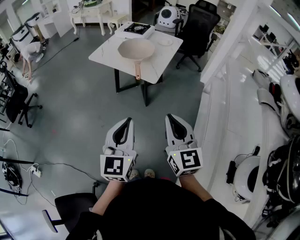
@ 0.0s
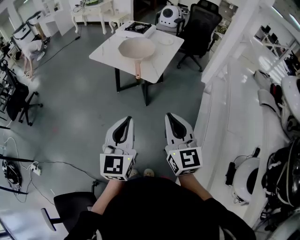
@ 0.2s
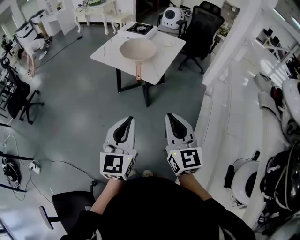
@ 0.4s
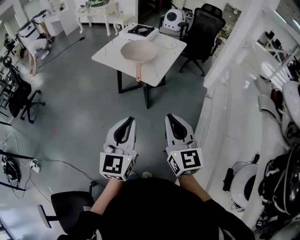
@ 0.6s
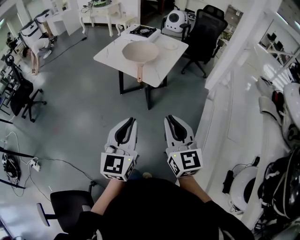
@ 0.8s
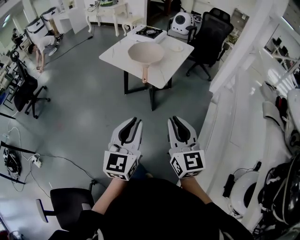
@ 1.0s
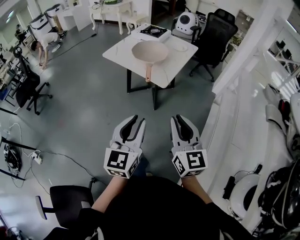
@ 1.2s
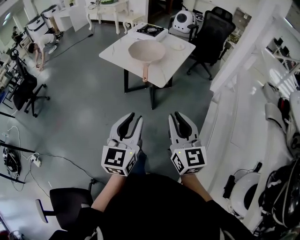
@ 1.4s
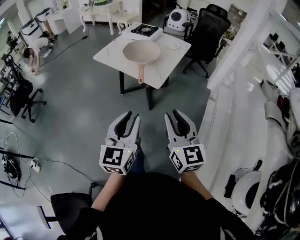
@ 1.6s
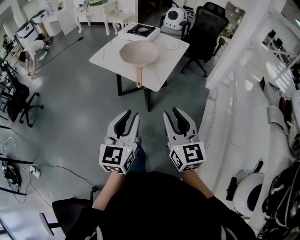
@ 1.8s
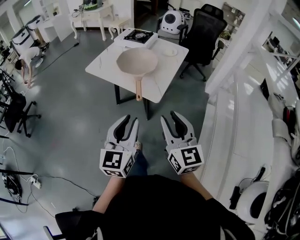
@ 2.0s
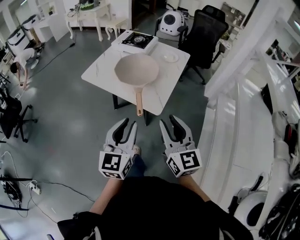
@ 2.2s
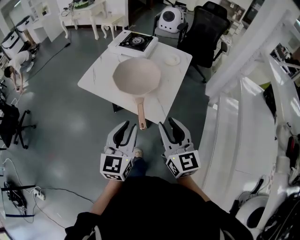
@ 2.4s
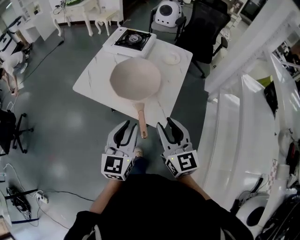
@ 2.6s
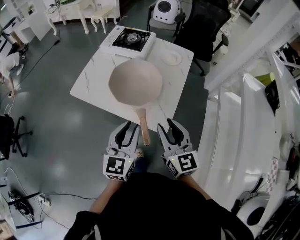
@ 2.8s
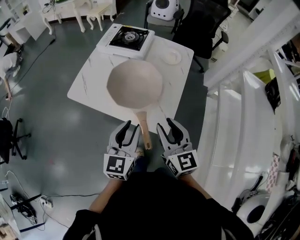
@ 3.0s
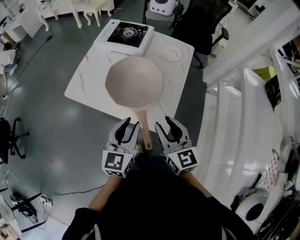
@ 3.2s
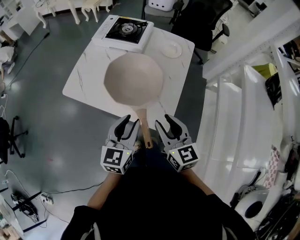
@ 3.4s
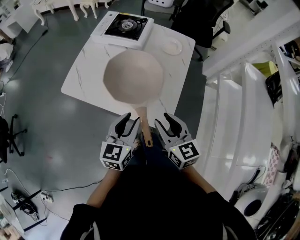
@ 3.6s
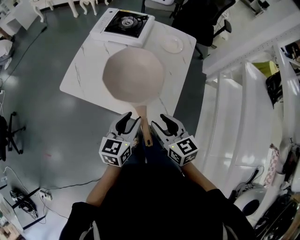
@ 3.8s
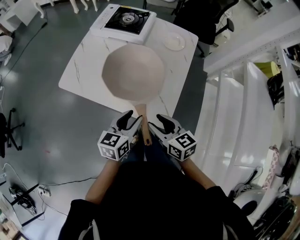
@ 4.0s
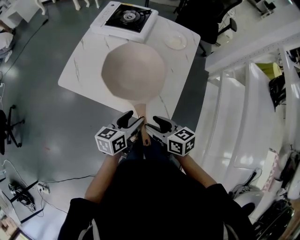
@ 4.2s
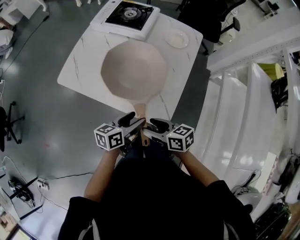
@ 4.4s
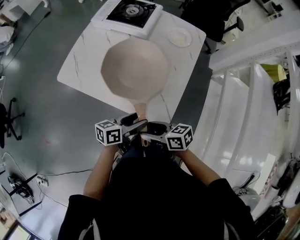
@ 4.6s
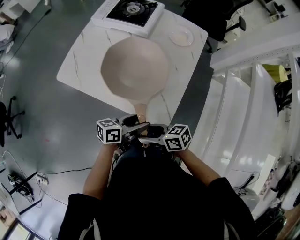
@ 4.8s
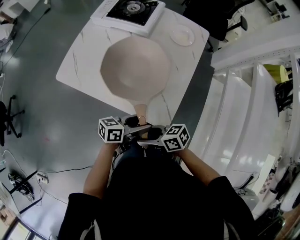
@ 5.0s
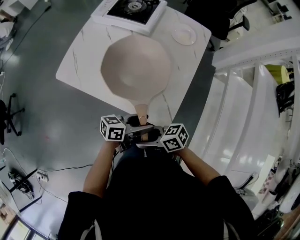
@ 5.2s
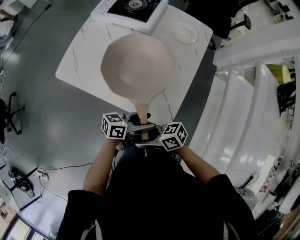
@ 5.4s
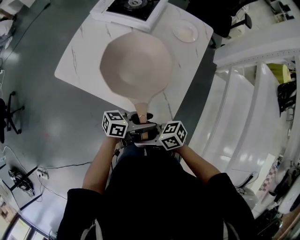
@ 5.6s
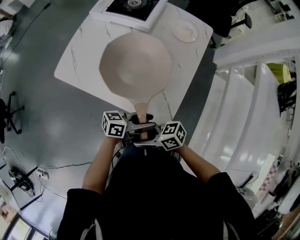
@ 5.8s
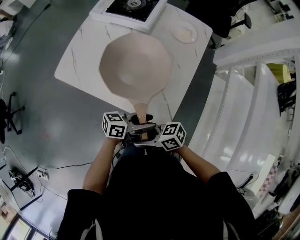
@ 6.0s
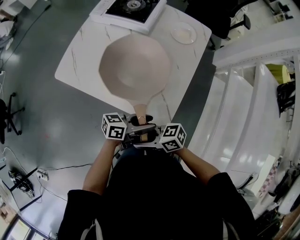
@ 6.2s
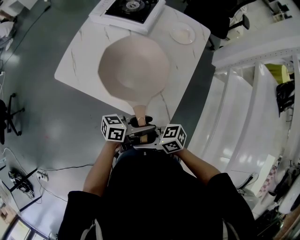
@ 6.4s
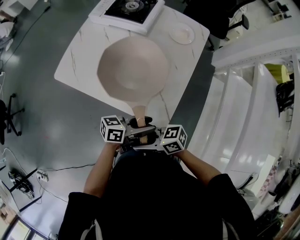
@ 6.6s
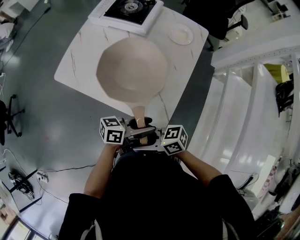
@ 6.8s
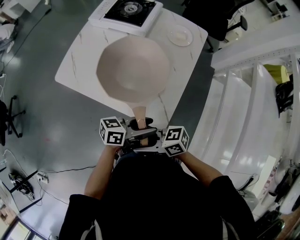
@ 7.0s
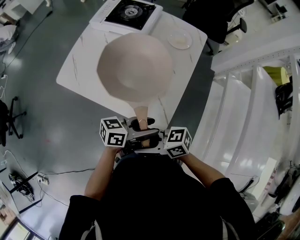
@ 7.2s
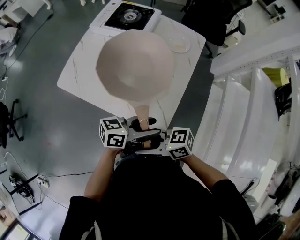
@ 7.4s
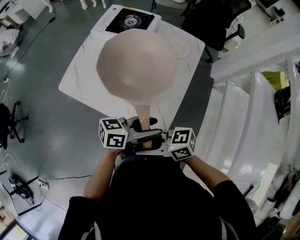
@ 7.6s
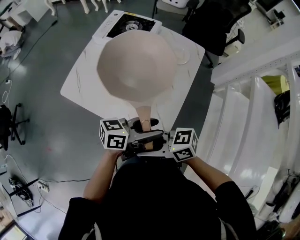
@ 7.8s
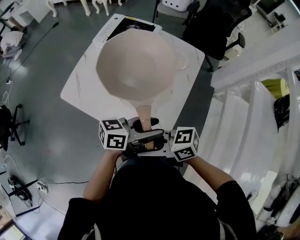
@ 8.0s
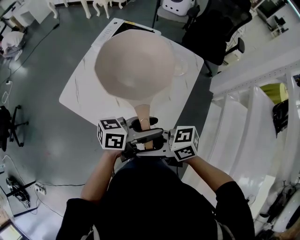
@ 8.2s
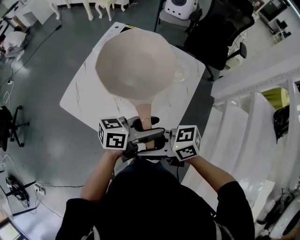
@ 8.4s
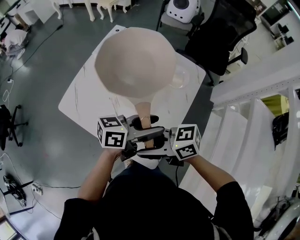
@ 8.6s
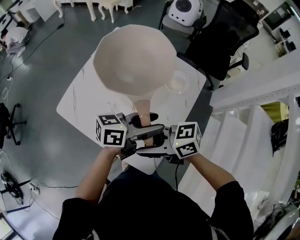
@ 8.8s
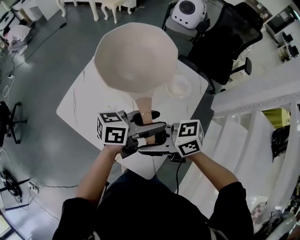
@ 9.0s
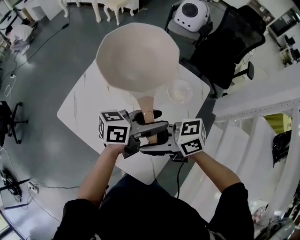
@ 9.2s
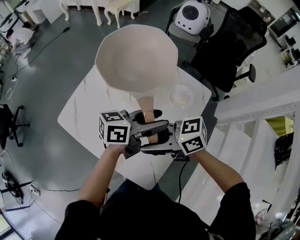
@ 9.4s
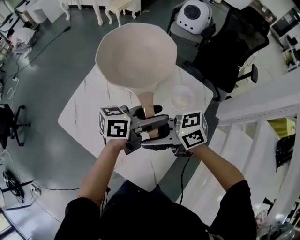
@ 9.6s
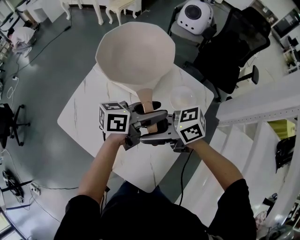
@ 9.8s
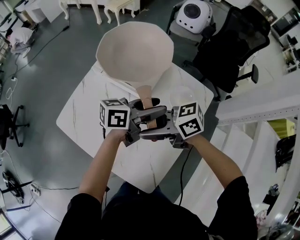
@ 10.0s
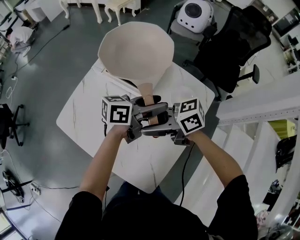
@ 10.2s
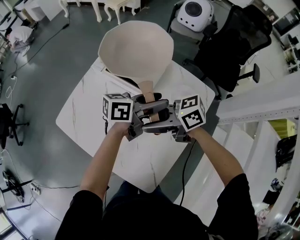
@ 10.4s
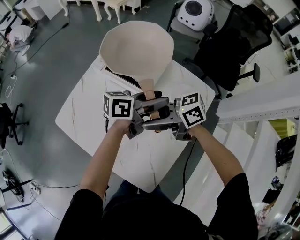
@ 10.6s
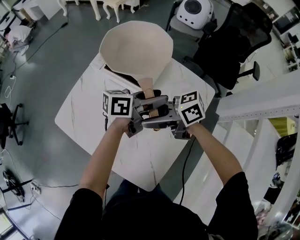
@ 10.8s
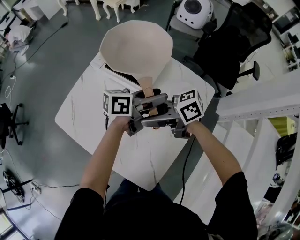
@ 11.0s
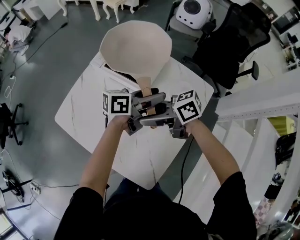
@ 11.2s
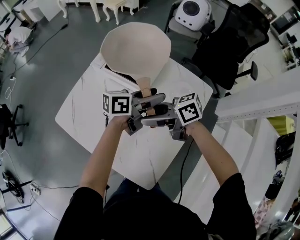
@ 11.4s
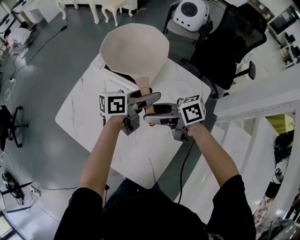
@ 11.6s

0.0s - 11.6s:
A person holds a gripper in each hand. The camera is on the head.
0.0s - 1.4s: The grippers move only a little.
1.4s - 2.8s: Both grippers travel together forward, about 40 cm.
2.8s - 4.4s: The two grippers go some 15 cm downward. The left gripper swivels roughly 50 degrees, and opens its fingers; the right gripper changes its angle by some 50 degrees, and opens its fingers.
4.4s - 5.8s: The right gripper shifts by some 10 cm, and swivels roughly 30 degrees; the left gripper ends up roughly 5 cm from where it was, and rotates approximately 30 degrees.
5.8s - 7.2s: Both grippers move upward, approximately 5 cm.
7.2s - 8.8s: The left gripper changes place by about 25 cm; the right gripper changes place by roughly 25 cm.
8.8s - 10.2s: The left gripper shifts by some 15 cm. Meanwhile the right gripper changes place by about 15 cm.
10.2s - 11.6s: There are only small adjustments of the grippers.

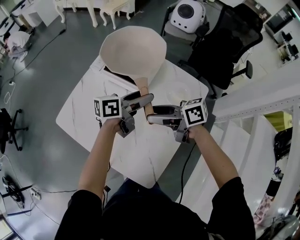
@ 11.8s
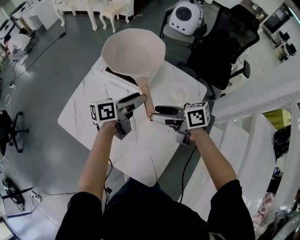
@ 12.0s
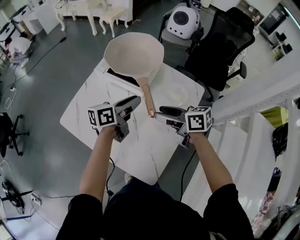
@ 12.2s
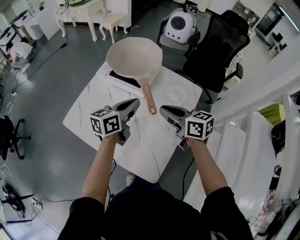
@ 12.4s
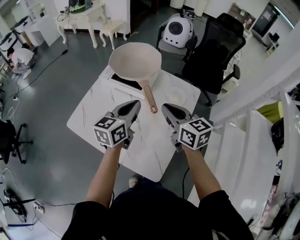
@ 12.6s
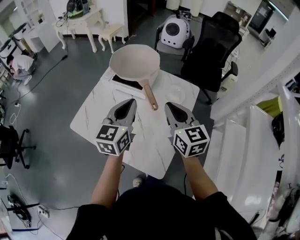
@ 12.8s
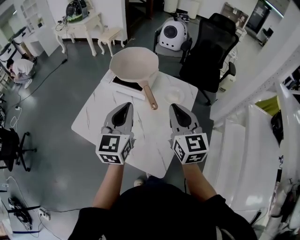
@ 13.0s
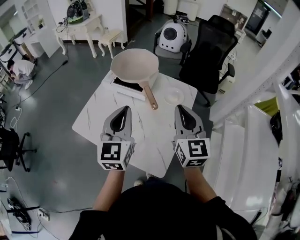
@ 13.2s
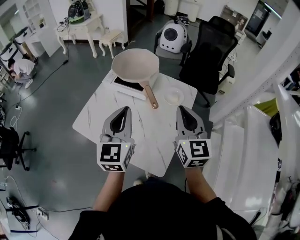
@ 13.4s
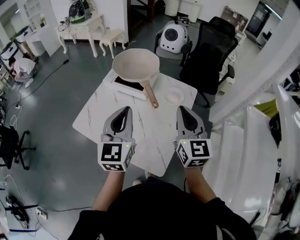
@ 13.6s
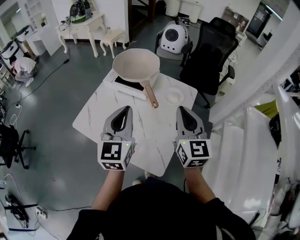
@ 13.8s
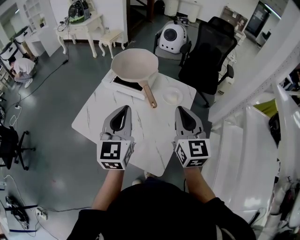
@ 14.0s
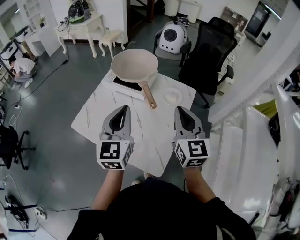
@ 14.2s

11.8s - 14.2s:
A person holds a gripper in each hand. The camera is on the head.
11.8s - 13.0s: The left gripper shifts by about 25 cm, rotates around the line of its fingers by approximately 50 degrees, clockwise from behind, and closes up. Meanwhile the right gripper shifts roughly 15 cm upward, changes its angle by roughly 80 degrees, and closes.
13.0s - 14.2s: The grippers move only a little.

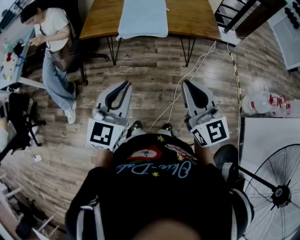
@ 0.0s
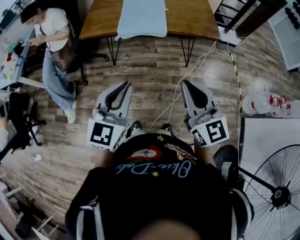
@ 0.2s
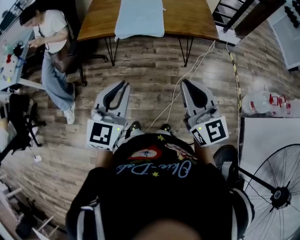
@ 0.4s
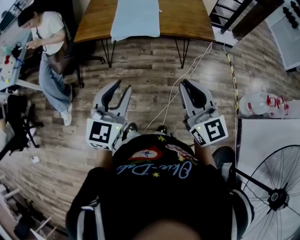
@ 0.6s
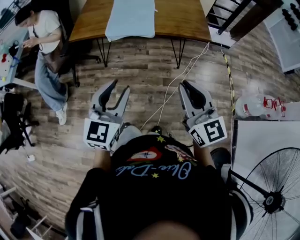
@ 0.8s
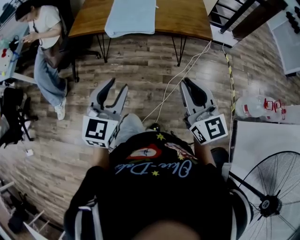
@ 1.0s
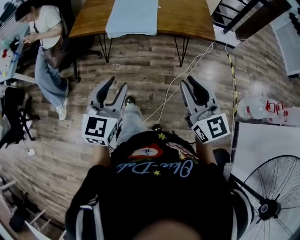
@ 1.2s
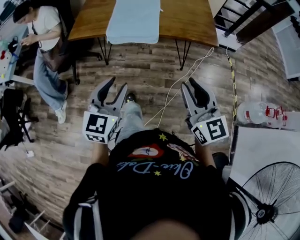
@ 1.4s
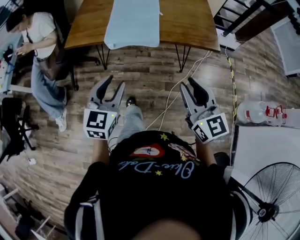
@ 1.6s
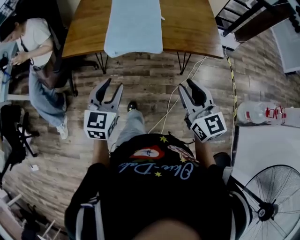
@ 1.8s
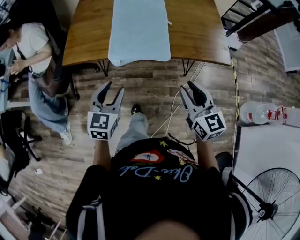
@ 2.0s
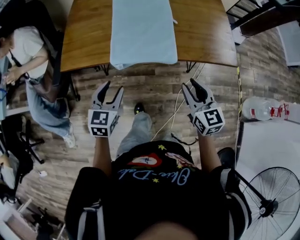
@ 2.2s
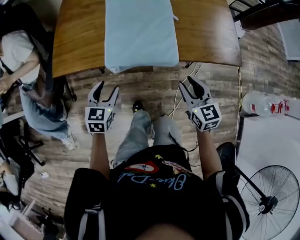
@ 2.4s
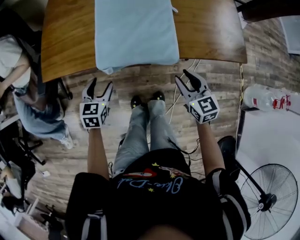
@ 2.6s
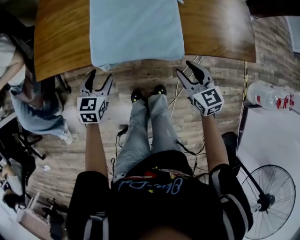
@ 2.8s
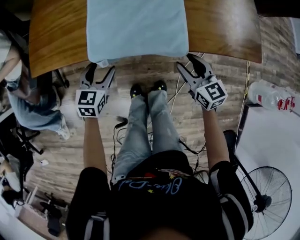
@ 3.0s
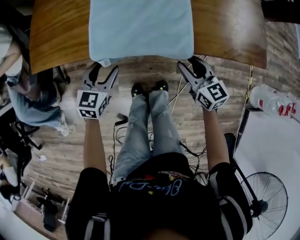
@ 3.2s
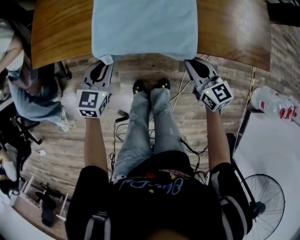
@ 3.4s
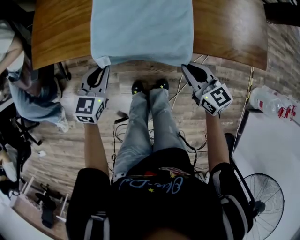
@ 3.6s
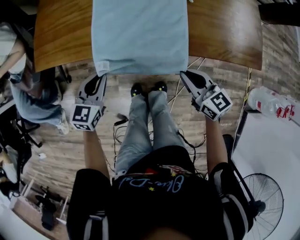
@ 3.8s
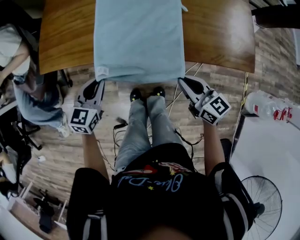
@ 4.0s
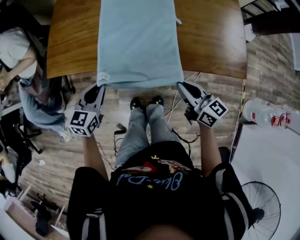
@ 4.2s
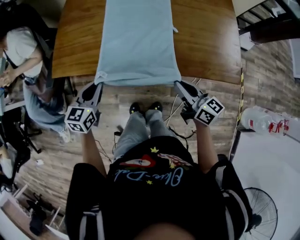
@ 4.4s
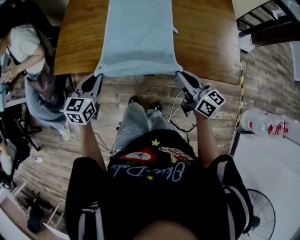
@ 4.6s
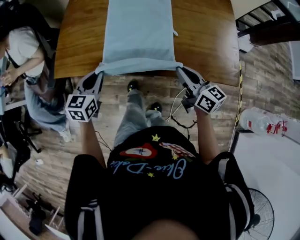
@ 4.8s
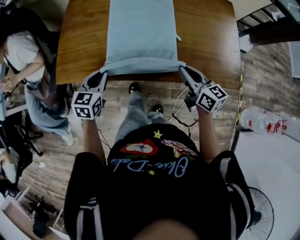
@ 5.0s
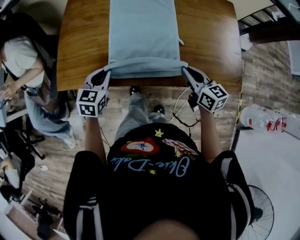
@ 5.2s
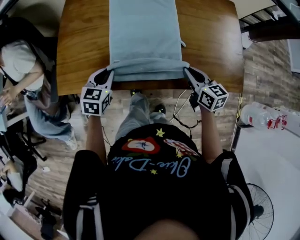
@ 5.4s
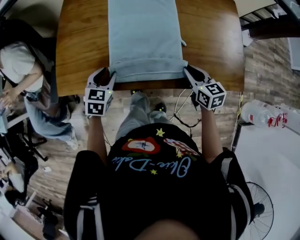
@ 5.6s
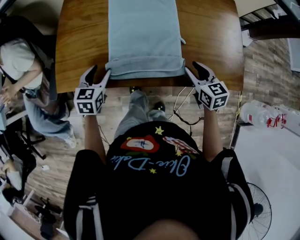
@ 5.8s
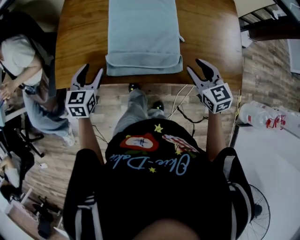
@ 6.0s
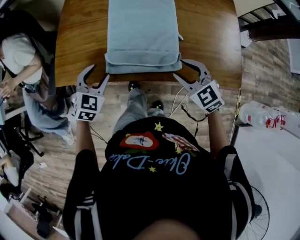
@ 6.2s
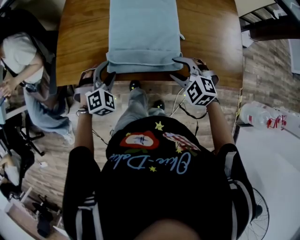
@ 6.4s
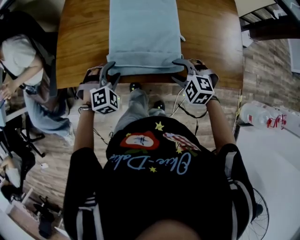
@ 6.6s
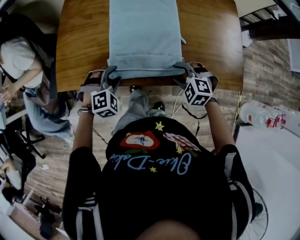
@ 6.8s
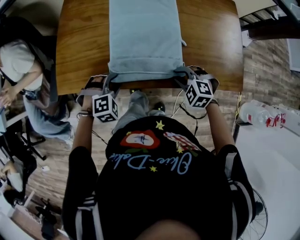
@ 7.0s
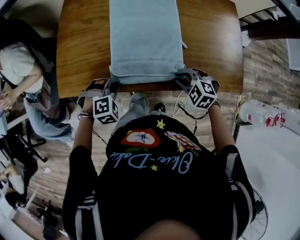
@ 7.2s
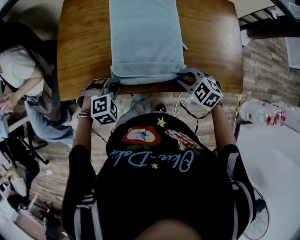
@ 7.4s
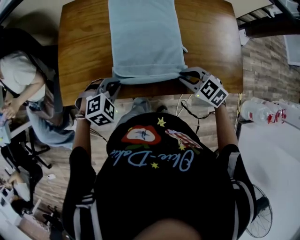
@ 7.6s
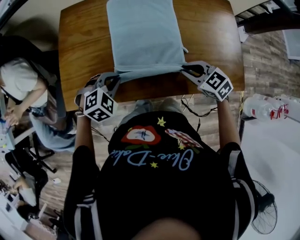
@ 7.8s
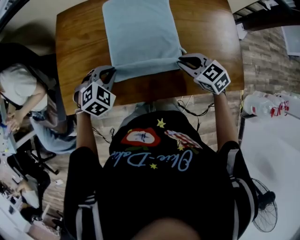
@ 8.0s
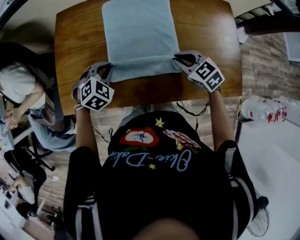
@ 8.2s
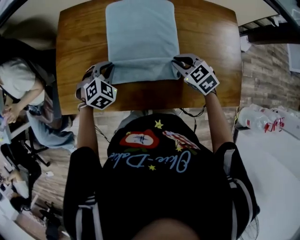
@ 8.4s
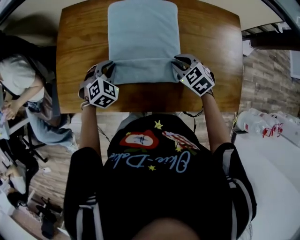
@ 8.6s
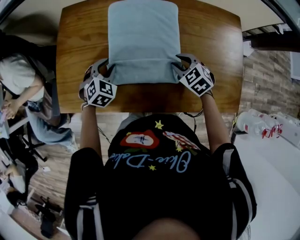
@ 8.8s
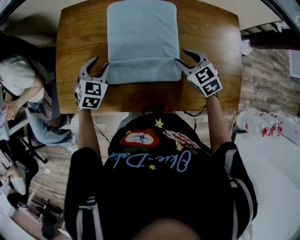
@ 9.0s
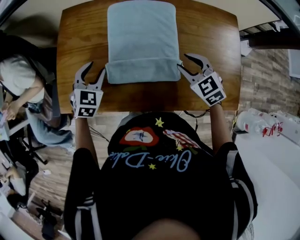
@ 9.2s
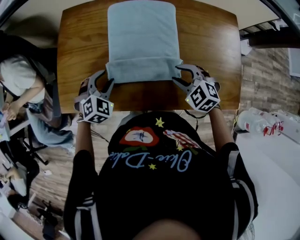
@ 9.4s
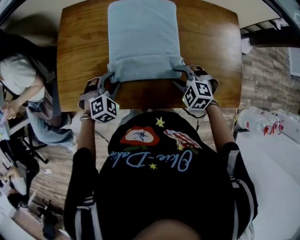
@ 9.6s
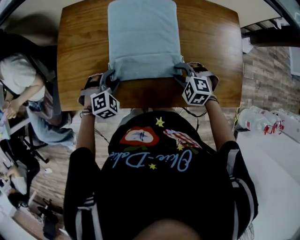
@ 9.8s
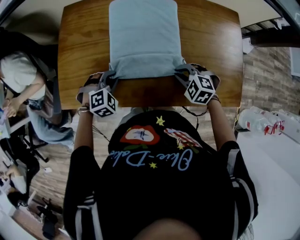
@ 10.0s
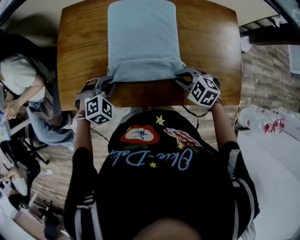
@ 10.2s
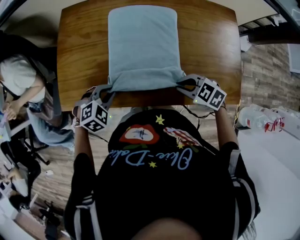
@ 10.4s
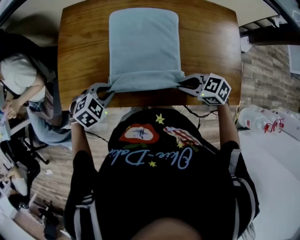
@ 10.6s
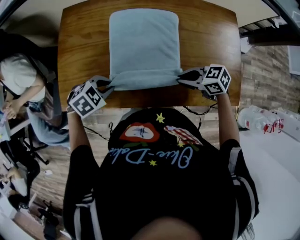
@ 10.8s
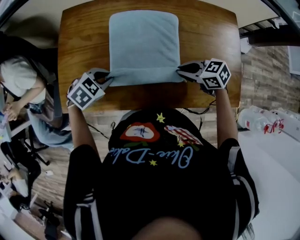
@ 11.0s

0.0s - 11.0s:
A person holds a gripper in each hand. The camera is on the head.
0.0s - 1.6s: The right gripper is displaced forward, to the right and downward by about 15 cm; the left gripper heads forward and downward, covering approximately 15 cm, and opens its fingers.
1.6s - 3.2s: Both grippers move downward and forward, about 40 cm. The right gripper swivels roughly 20 degrees.
3.2s - 4.8s: Both grippers travel together upward, about 15 cm. The left gripper closes; the right gripper turns by some 20 degrees, and closes.
4.8s - 6.2s: The right gripper twists approximately 50 degrees counterclockwise, seen from behind, and opens up, while the left gripper rotates roughly 30 degrees, and opens.
6.2s - 7.8s: The right gripper goes some 5 cm forward, moves about 10 cm downward and comes back, and closes. The left gripper moves approximately 5 cm, rotates about 30 degrees, and closes.
7.8s - 9.4s: The right gripper swivels some 30 degrees, and opens its fingers, while the left gripper is displaced forward by some 5 cm, and opens its fingers.
9.4s - 11.0s: The left gripper turns by about 30 degrees, and closes its fingers. Meanwhile the right gripper rotates about 40 degrees, and closes its fingers.
